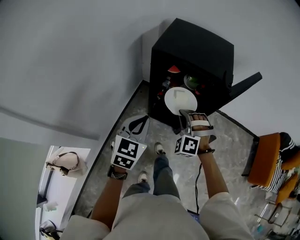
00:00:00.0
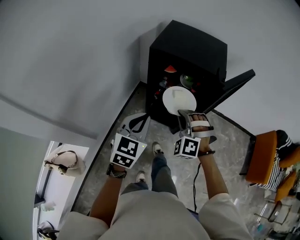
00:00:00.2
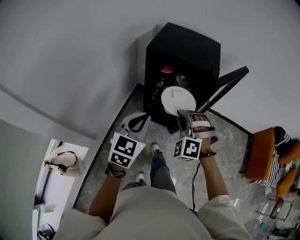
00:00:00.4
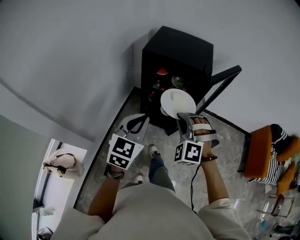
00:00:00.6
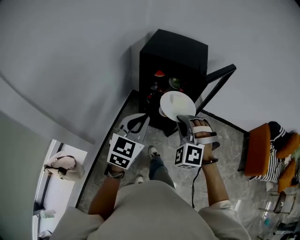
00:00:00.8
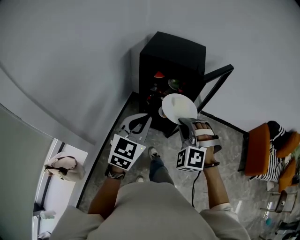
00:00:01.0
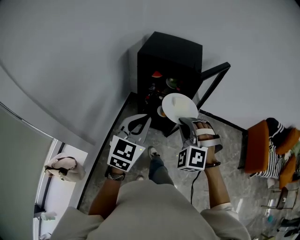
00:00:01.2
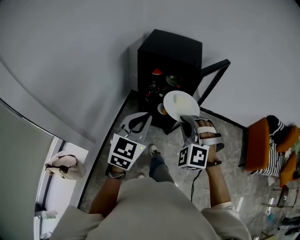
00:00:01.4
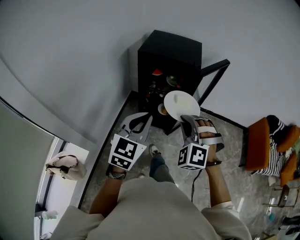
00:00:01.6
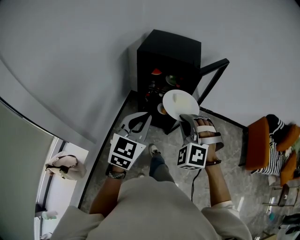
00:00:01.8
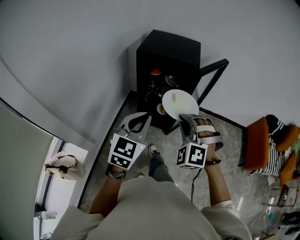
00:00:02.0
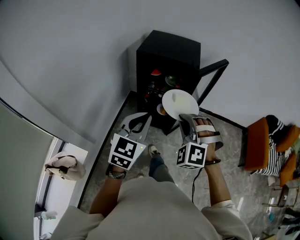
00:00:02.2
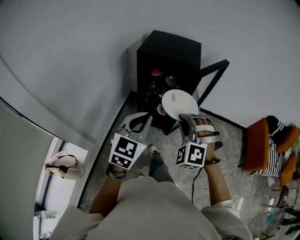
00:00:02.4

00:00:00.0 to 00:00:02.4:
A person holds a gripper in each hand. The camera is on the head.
00:00:00.0 to 00:00:01.2: The two grippers go roughly 20 cm backward, upward and to the right.
00:00:01.2 to 00:00:02.4: Both grippers stay about where they are.

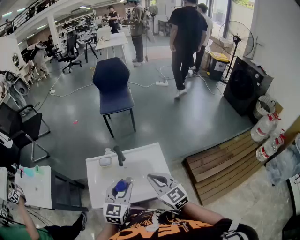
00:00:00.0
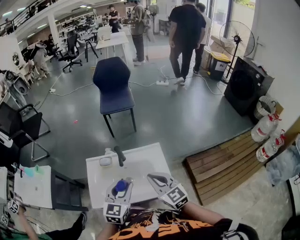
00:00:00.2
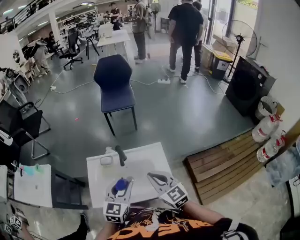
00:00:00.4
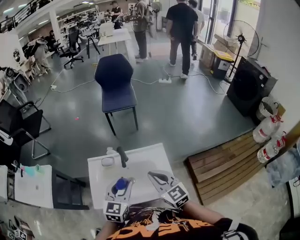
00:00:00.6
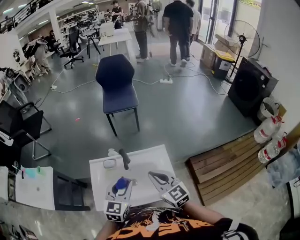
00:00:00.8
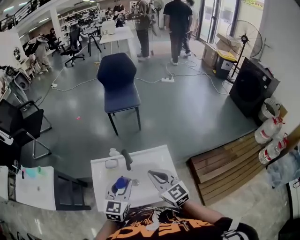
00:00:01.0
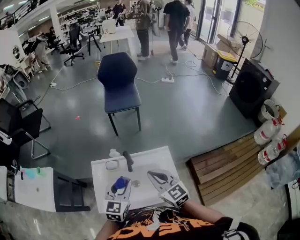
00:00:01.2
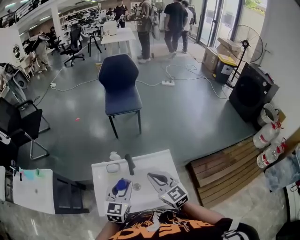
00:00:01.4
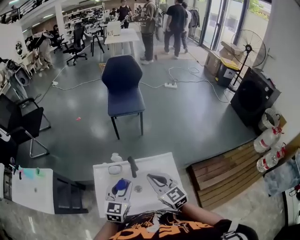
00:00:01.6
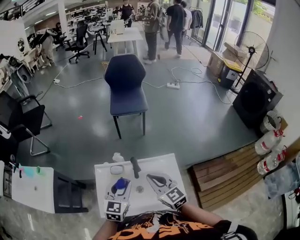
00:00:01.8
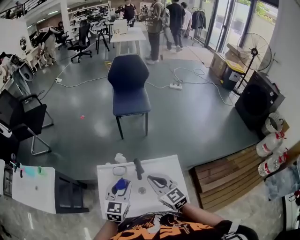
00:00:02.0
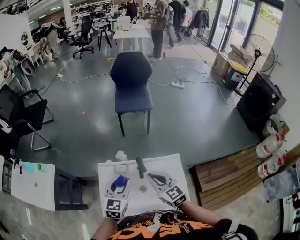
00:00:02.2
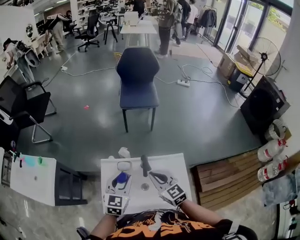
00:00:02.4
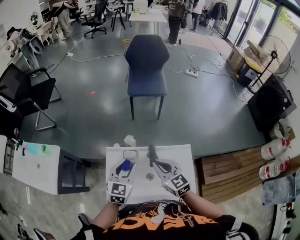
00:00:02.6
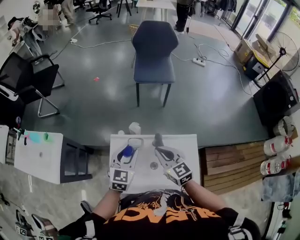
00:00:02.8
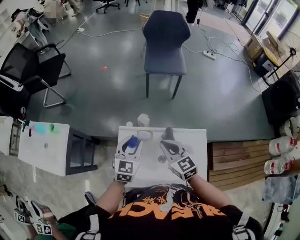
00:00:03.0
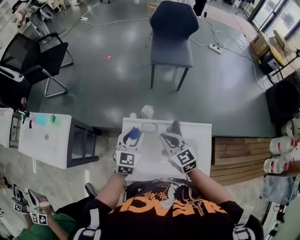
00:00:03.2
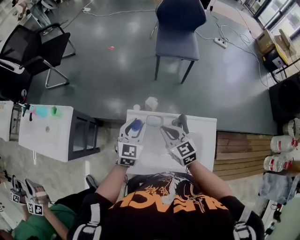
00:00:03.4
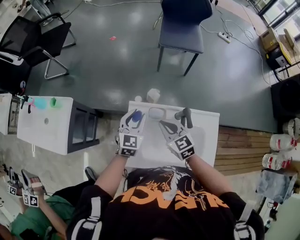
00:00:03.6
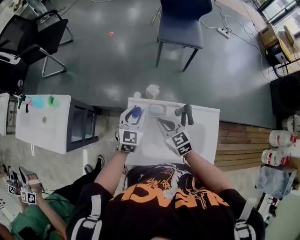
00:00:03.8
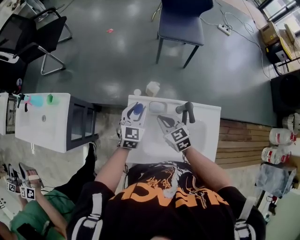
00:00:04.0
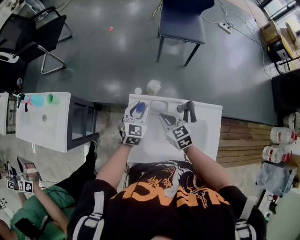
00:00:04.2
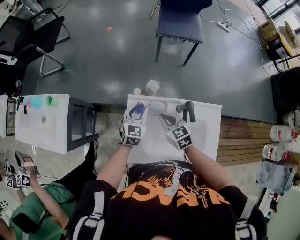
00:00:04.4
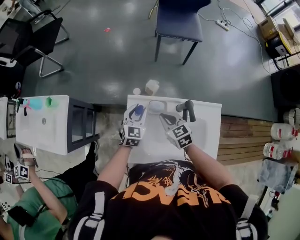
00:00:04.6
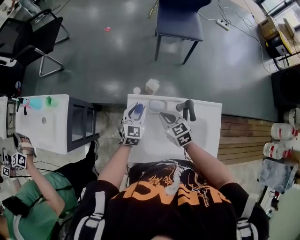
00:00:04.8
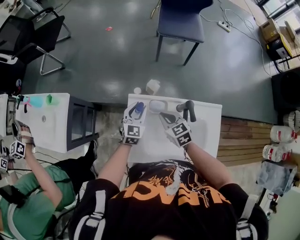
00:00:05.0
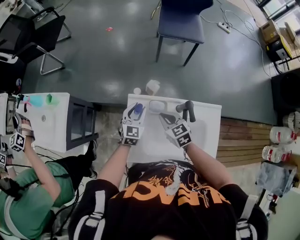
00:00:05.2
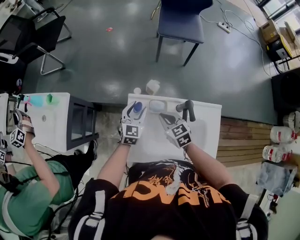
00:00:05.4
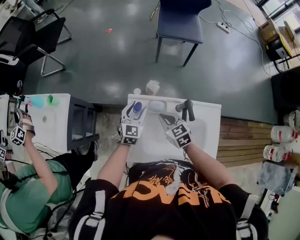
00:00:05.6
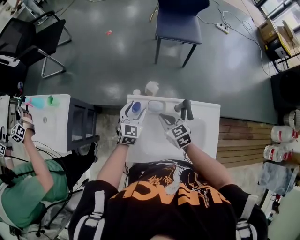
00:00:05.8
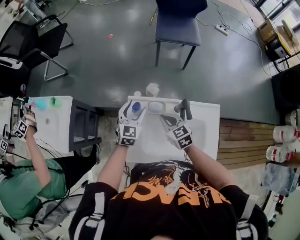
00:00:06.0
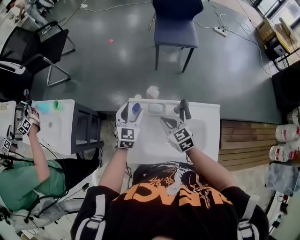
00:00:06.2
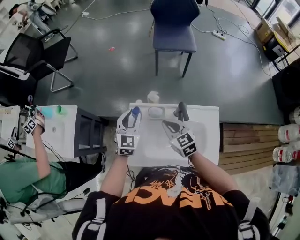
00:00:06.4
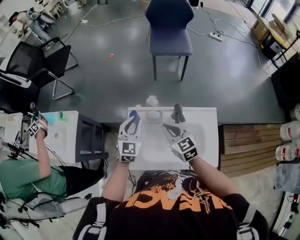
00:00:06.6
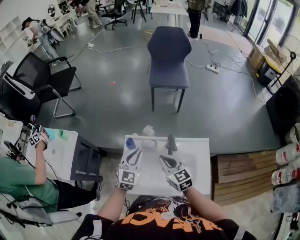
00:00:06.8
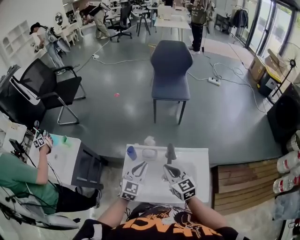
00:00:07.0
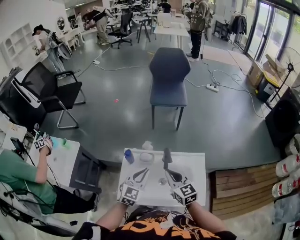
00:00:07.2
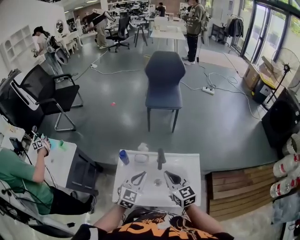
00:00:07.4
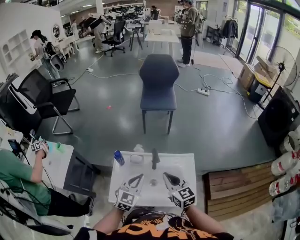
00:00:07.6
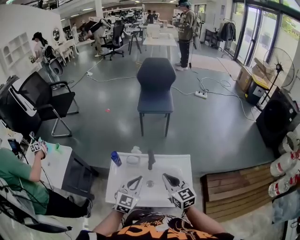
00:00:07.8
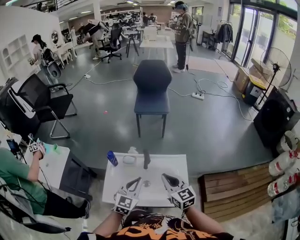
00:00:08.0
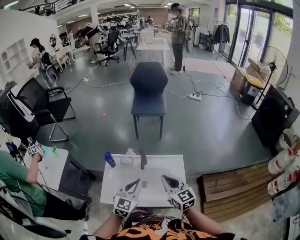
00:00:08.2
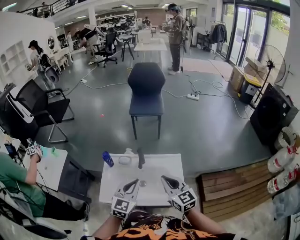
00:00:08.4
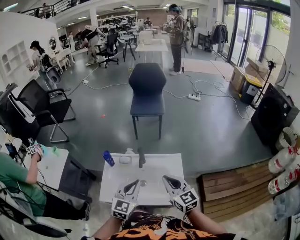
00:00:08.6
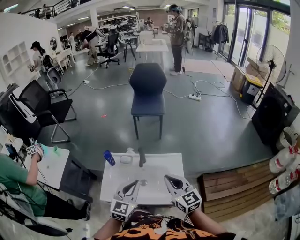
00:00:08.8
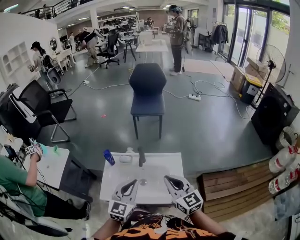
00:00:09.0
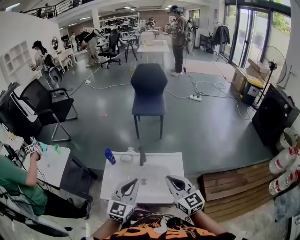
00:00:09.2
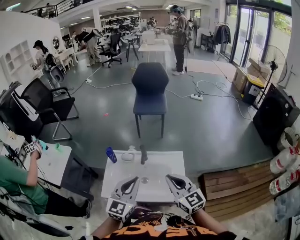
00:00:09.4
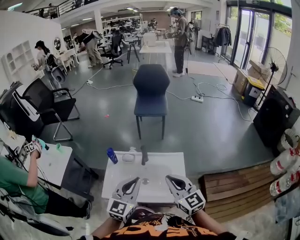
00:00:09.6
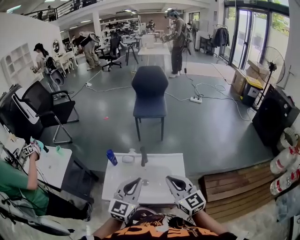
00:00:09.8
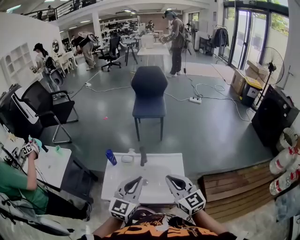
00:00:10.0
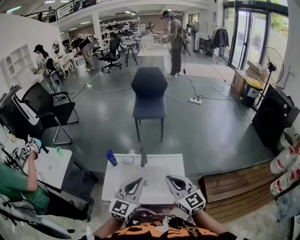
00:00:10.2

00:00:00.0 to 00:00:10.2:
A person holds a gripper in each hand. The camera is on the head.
00:00:00.0 to 00:00:01.4: The two grippers go roughly 10 cm forward and to the left.
00:00:01.4 to 00:00:03.0: The right gripper is displaced to the left, forward and downward by roughly 20 cm; the left gripper travels forward, to the left and downward by about 20 cm.
00:00:03.0 to 00:00:04.4: The right gripper is displaced downward and to the left by roughly 15 cm. Meanwhile the left gripper shifts about 15 cm downward and forward.
00:00:04.4 to 00:00:05.8: The left gripper opens.
00:00:05.8 to 00:00:07.2: The left gripper is displaced backward, upward and to the right by some 25 cm, and closes. The right gripper shifts roughly 20 cm upward, backward and to the right, and rotates approximately 20 degrees.
00:00:07.2 to 00:00:08.8: The left gripper is displaced backward, to the right and upward by about 20 cm; the right gripper is displaced to the right, backward and upward by roughly 20 cm.
00:00:08.8 to 00:00:10.2: The right gripper moves approximately 5 cm. Meanwhile the left gripper shifts some 5 cm upward.

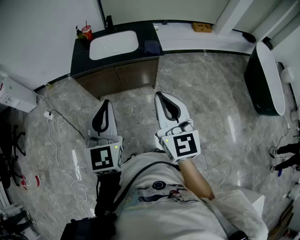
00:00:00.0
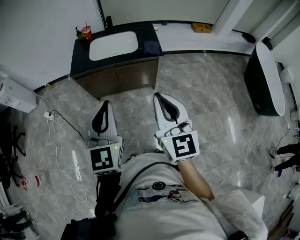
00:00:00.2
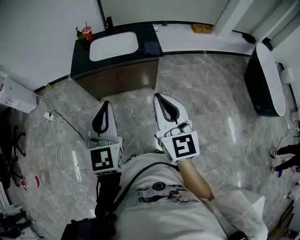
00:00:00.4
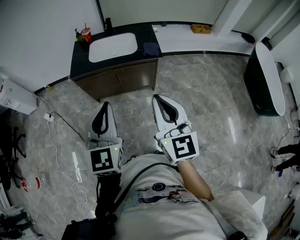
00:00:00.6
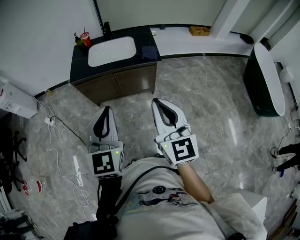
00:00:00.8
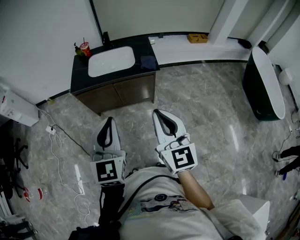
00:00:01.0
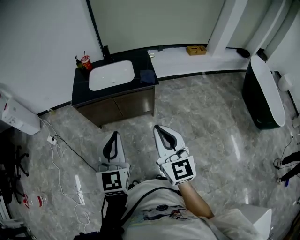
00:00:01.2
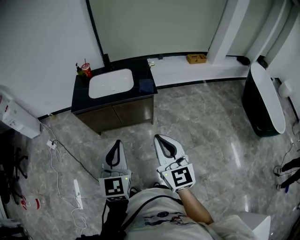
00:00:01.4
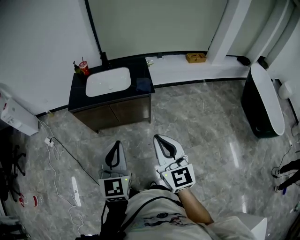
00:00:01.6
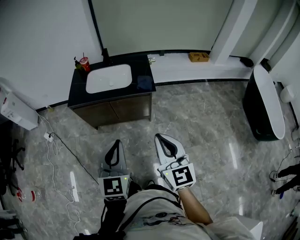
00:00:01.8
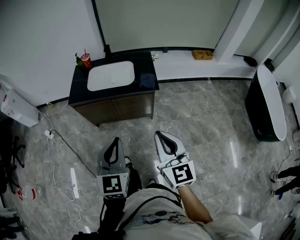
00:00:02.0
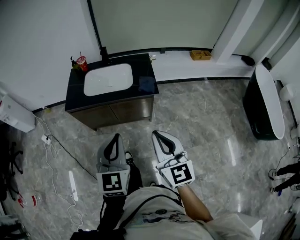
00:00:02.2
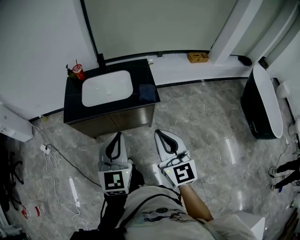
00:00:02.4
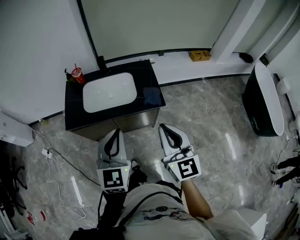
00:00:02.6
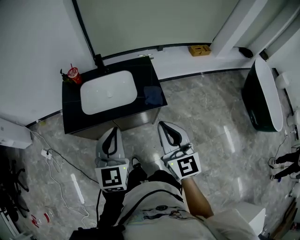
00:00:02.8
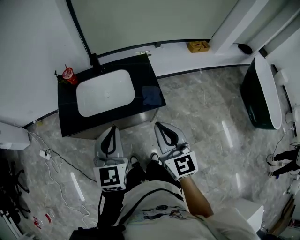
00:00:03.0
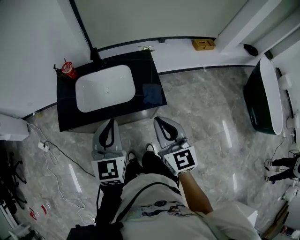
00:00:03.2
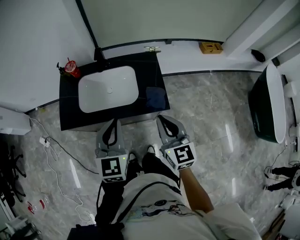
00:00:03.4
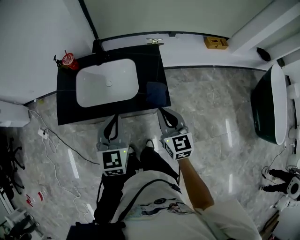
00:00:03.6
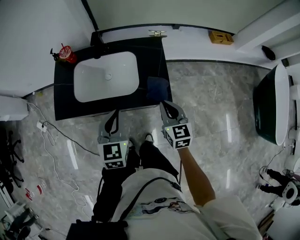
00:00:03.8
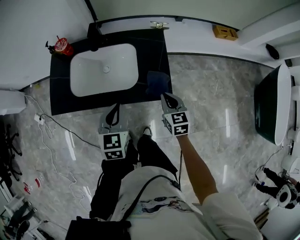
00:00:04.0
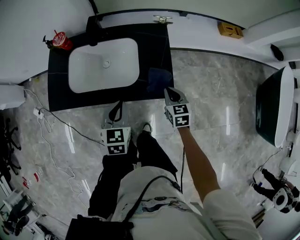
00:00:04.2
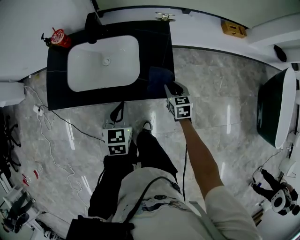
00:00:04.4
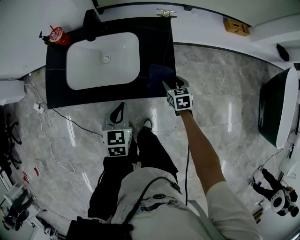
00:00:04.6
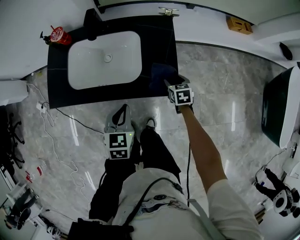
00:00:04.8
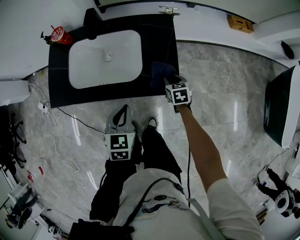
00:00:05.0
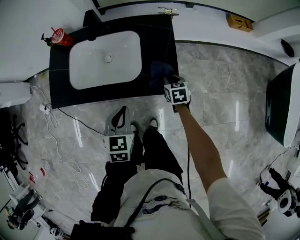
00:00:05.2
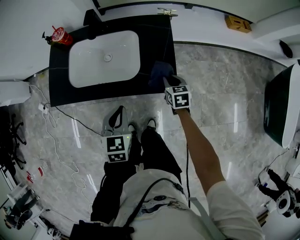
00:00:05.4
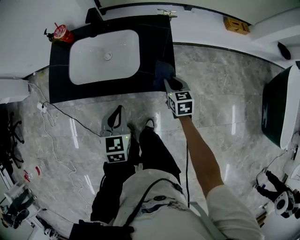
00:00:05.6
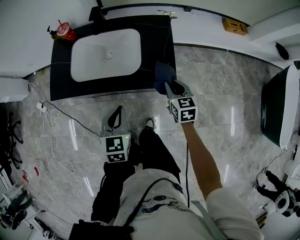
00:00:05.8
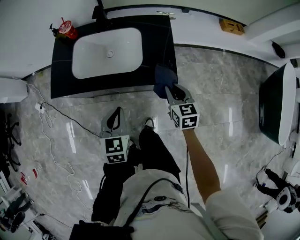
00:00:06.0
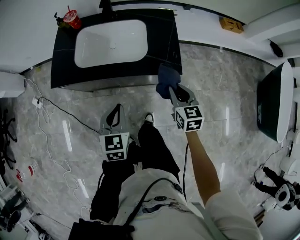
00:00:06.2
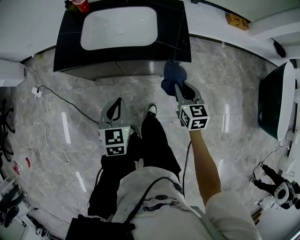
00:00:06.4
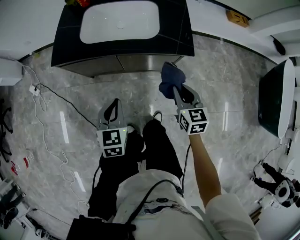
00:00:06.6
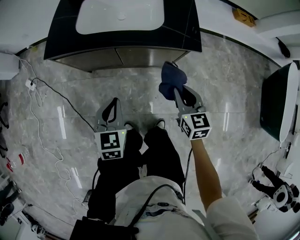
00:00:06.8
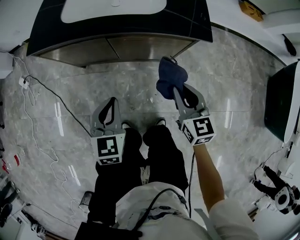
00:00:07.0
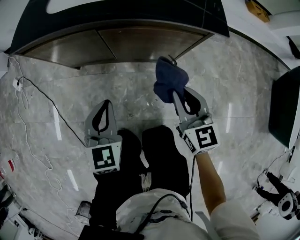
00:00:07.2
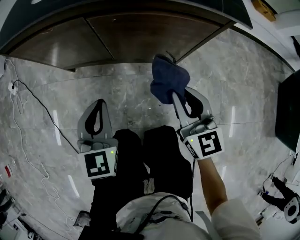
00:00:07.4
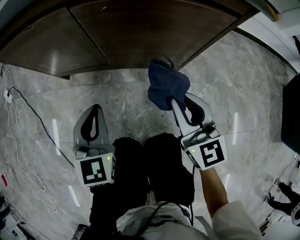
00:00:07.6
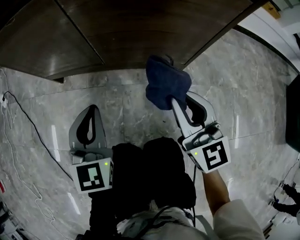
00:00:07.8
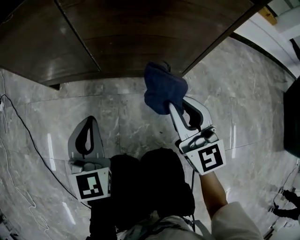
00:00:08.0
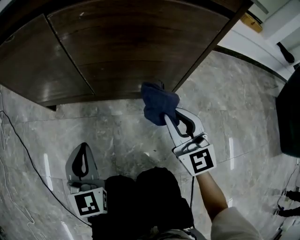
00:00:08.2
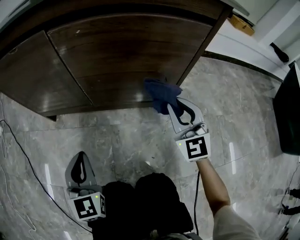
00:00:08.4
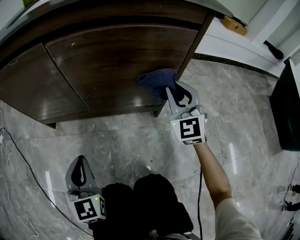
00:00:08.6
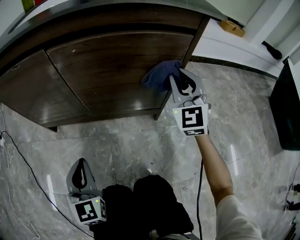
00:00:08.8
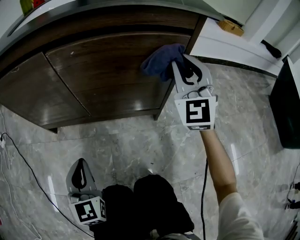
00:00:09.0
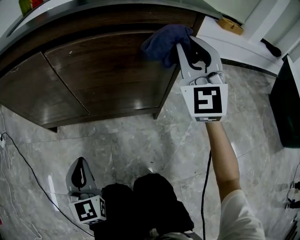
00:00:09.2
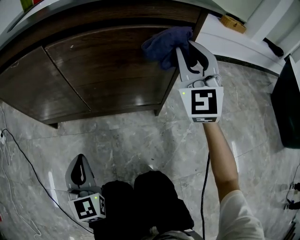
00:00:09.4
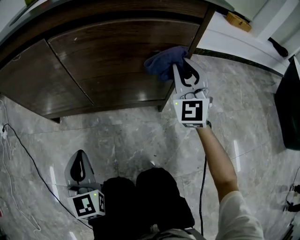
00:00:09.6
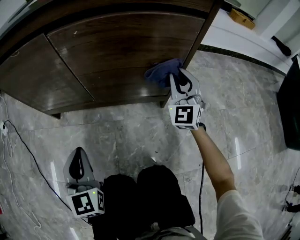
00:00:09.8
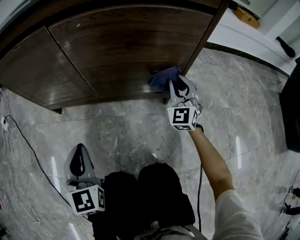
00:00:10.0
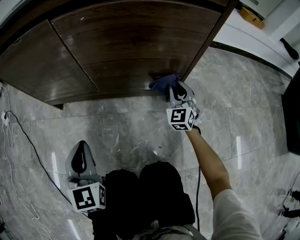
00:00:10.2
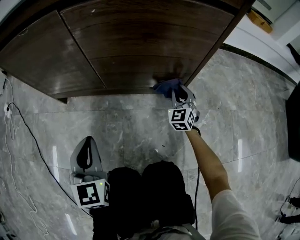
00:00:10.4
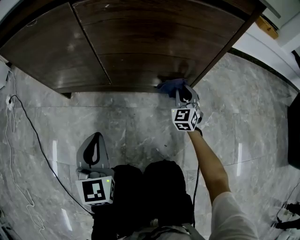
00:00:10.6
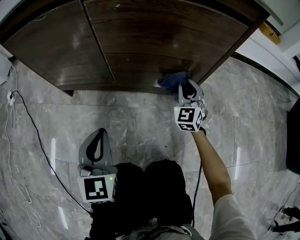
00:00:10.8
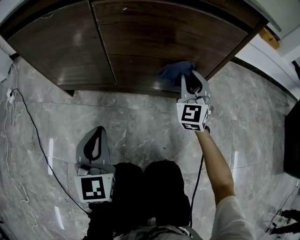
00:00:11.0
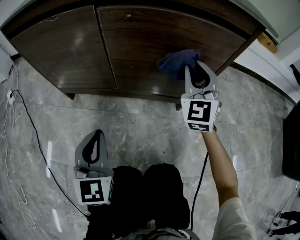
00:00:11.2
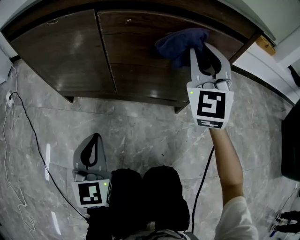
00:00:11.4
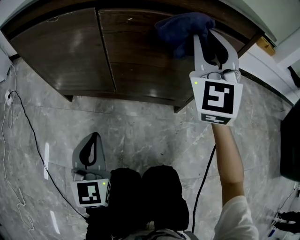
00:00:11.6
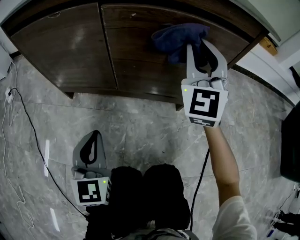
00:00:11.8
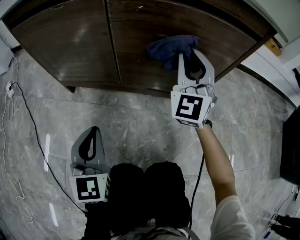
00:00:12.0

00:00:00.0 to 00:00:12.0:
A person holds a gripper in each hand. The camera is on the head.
00:00:00.0 to 00:00:01.6: Both grippers move to the right, some 10 cm.
00:00:01.6 to 00:00:03.0: Both grippers move forward, approximately 30 cm.
00:00:03.0 to 00:00:04.4: The right gripper travels downward and forward by approximately 40 cm, angles its fingers downward, by some 40 degrees, and opens up. Meanwhile the left gripper heads downward, covering about 25 cm, and swivels some 30 degrees.
00:00:04.4 to 00:00:06.0: The left gripper is displaced backward by about 10 cm. The right gripper travels upward and backward by about 10 cm, and opens and closes again.
00:00:06.0 to 00:00:07.6: The right gripper travels downward and backward by some 35 cm, and swivels approximately 30 degrees. Meanwhile the left gripper heads downward, covering roughly 40 cm.
00:00:07.6 to 00:00:09.0: The right gripper is displaced forward, to the right and upward by approximately 20 cm, and swivels about 40 degrees; the left gripper travels downward by roughly 5 cm.
00:00:09.0 to 00:00:10.4: The right gripper is displaced downward by some 35 cm, and swivels roughly 30 degrees.
00:00:10.4 to 00:00:12.0: The right gripper shifts about 30 cm upward and to the left, and rotates about 30 degrees.
